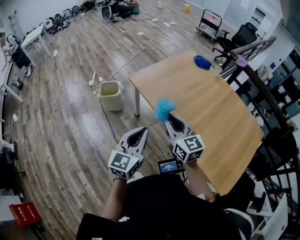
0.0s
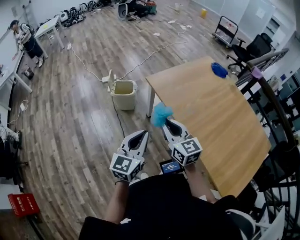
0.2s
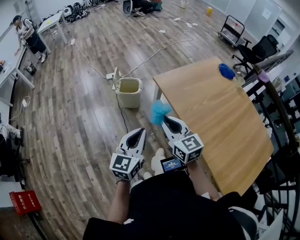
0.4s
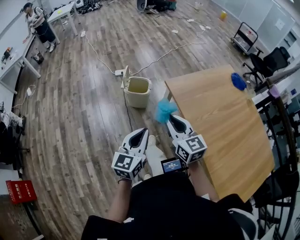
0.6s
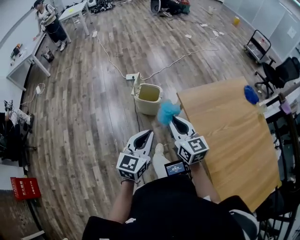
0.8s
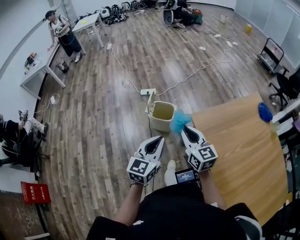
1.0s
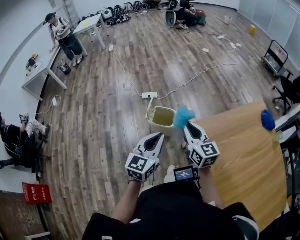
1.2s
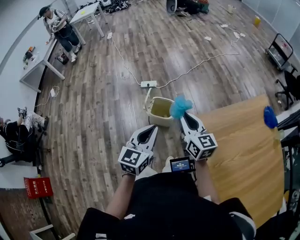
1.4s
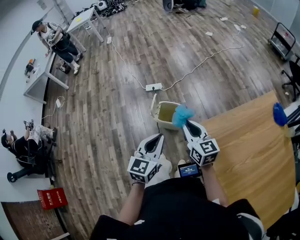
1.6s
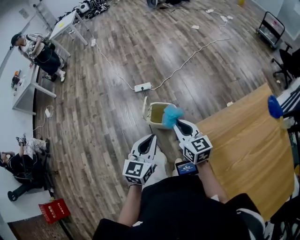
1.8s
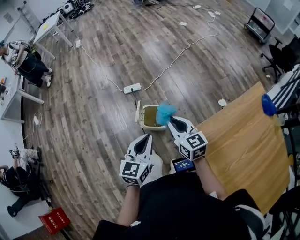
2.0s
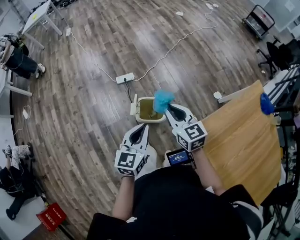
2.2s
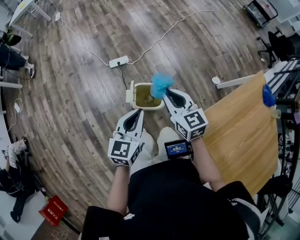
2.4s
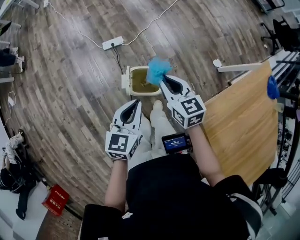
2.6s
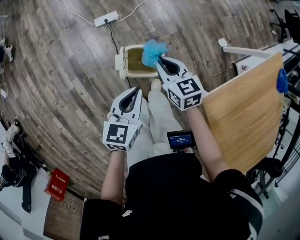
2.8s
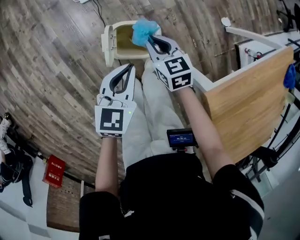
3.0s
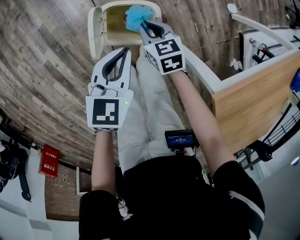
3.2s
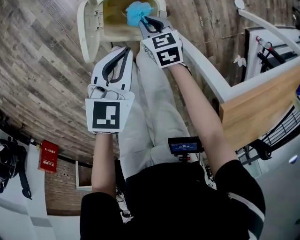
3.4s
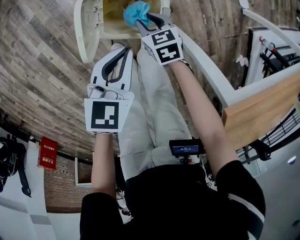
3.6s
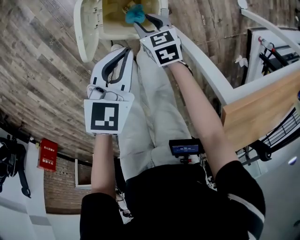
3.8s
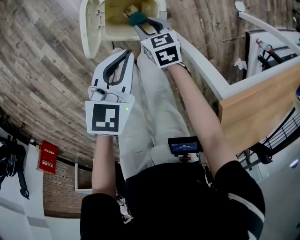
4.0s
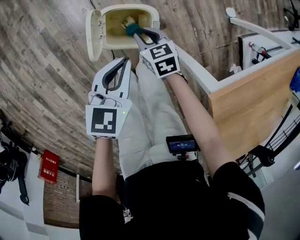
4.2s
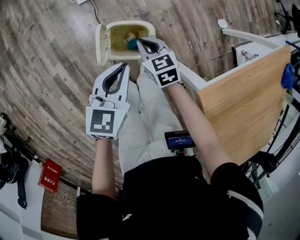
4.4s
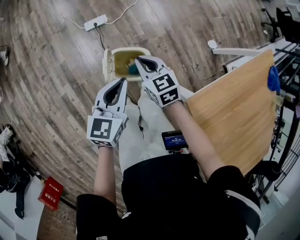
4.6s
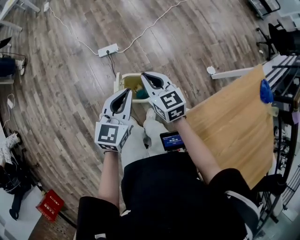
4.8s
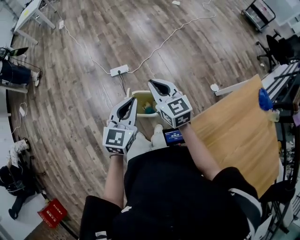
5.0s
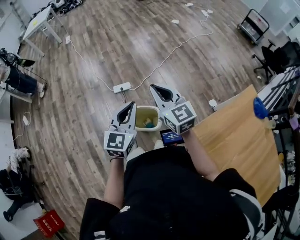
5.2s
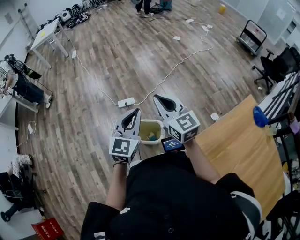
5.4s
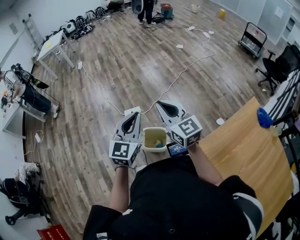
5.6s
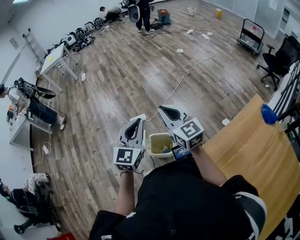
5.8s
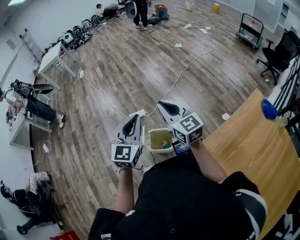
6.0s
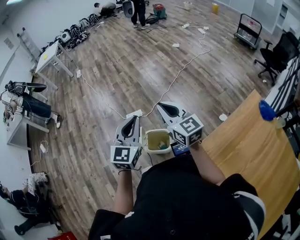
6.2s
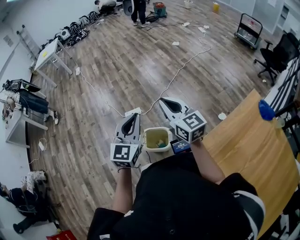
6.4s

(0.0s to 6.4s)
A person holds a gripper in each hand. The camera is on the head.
0.0s - 1.6s: Both grippers are carried forward and to the left, approximately 50 cm. The right gripper turns by roughly 20 degrees. The left gripper rotates about 30 degrees.
1.6s - 3.2s: Both grippers move downward and forward, some 50 cm. The left gripper changes its angle by some 30 degrees. Meanwhile the right gripper angles its fingers downward, by roughly 40 degrees.
3.2s - 4.8s: Both grippers travel together upward, approximately 30 cm. The left gripper turns by approximately 20 degrees. Meanwhile the right gripper swivels about 30 degrees, and opens, then closes again.
4.8s - 6.4s: Both grippers travel together upward, some 20 cm. The right gripper swivels about 20 degrees, while the left gripper turns by some 20 degrees.

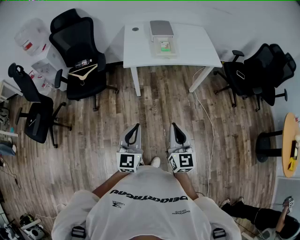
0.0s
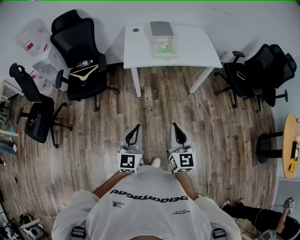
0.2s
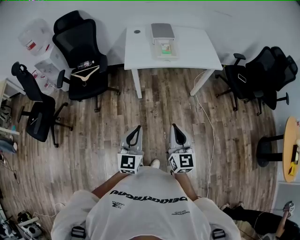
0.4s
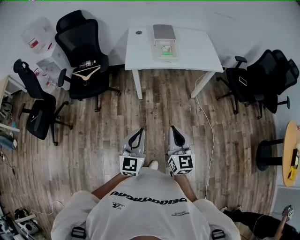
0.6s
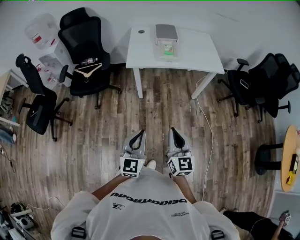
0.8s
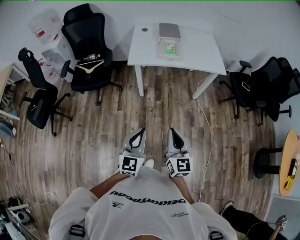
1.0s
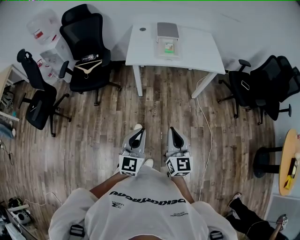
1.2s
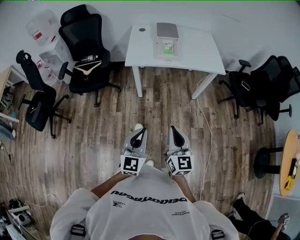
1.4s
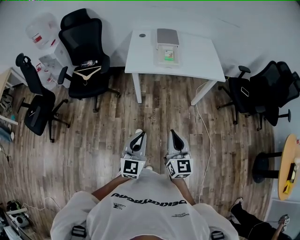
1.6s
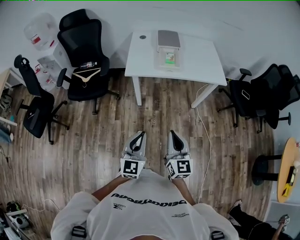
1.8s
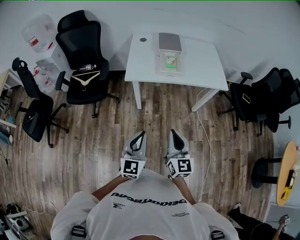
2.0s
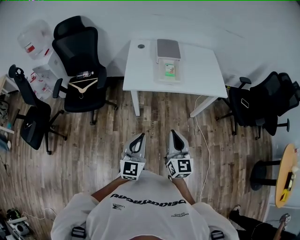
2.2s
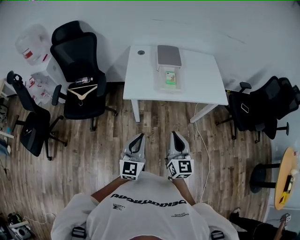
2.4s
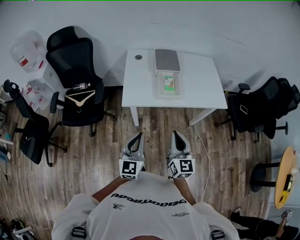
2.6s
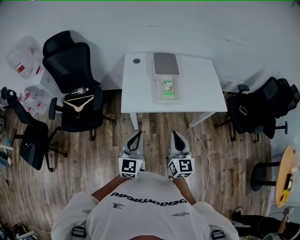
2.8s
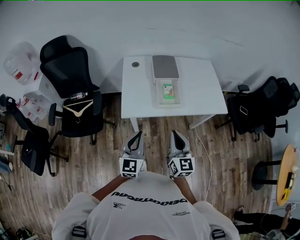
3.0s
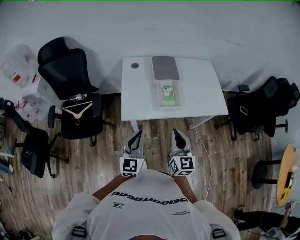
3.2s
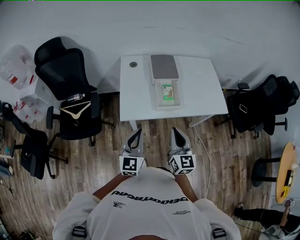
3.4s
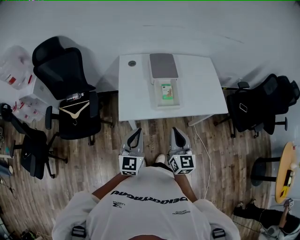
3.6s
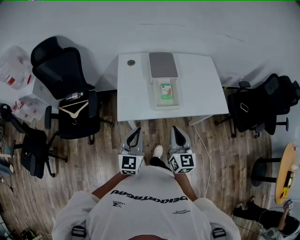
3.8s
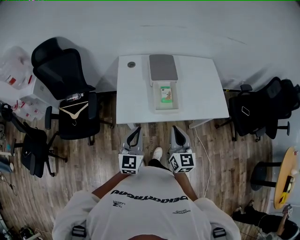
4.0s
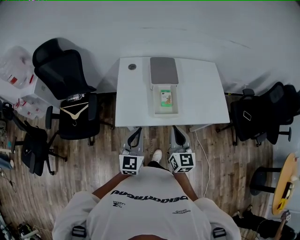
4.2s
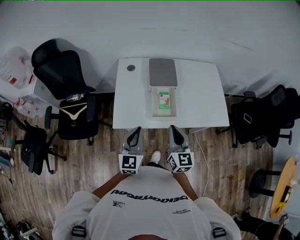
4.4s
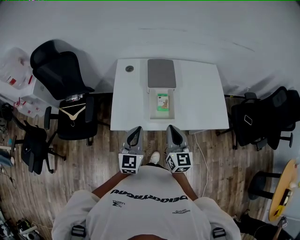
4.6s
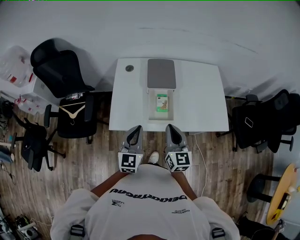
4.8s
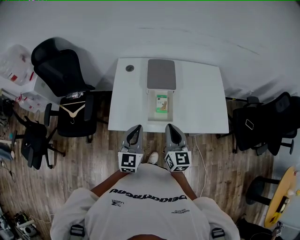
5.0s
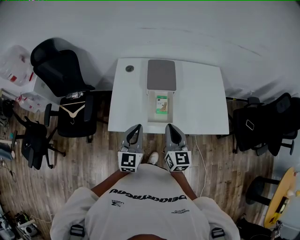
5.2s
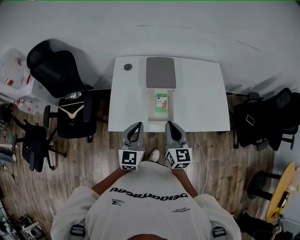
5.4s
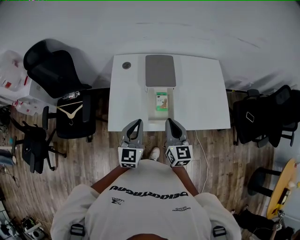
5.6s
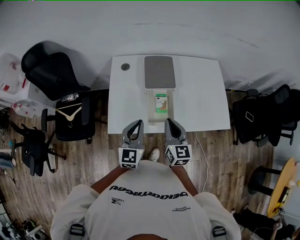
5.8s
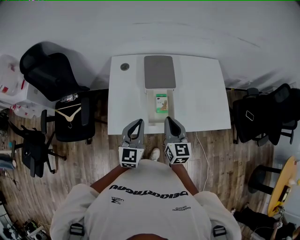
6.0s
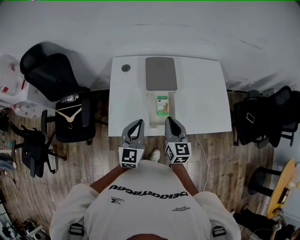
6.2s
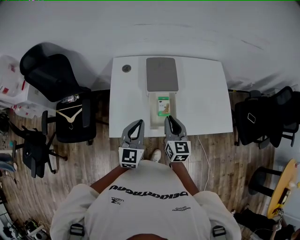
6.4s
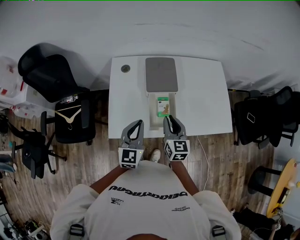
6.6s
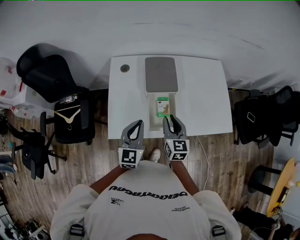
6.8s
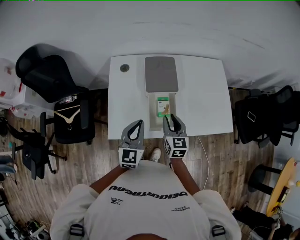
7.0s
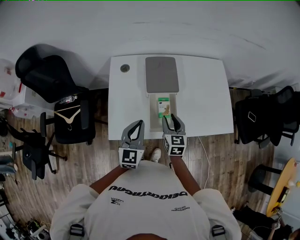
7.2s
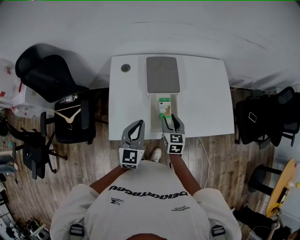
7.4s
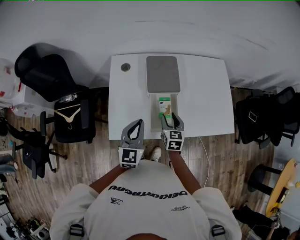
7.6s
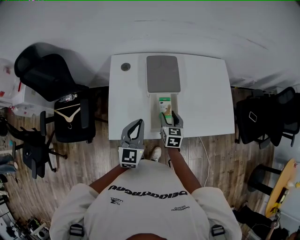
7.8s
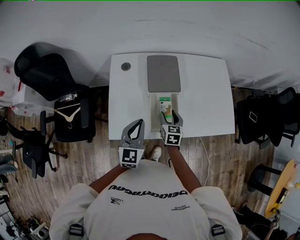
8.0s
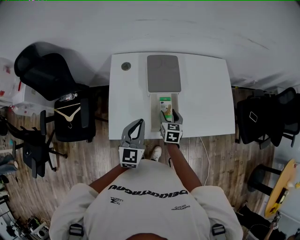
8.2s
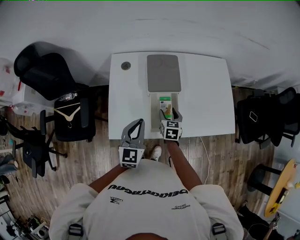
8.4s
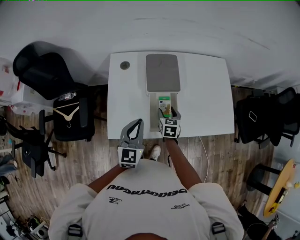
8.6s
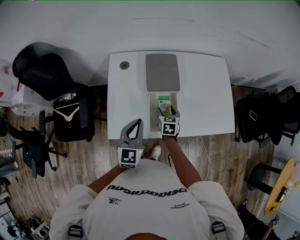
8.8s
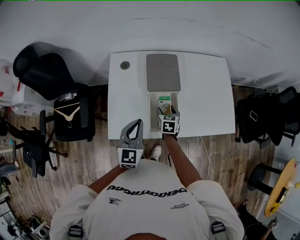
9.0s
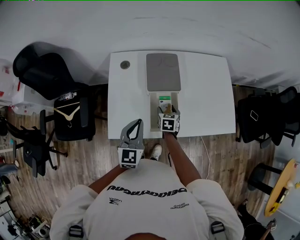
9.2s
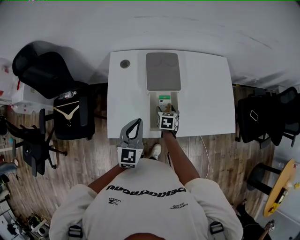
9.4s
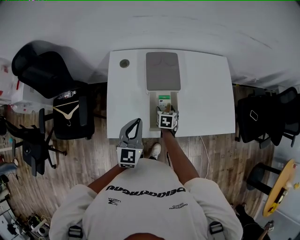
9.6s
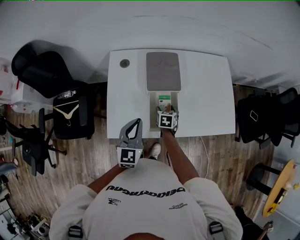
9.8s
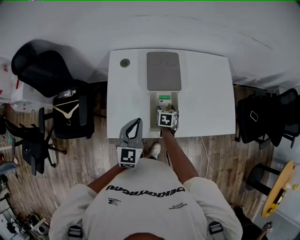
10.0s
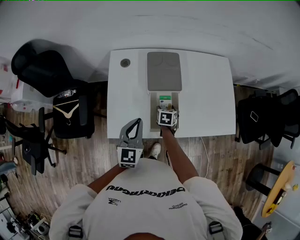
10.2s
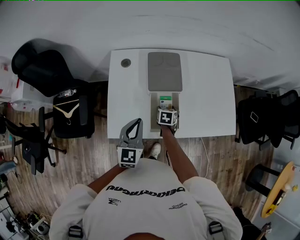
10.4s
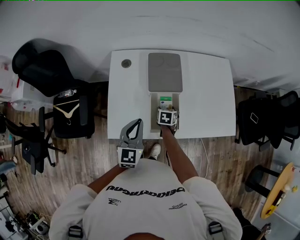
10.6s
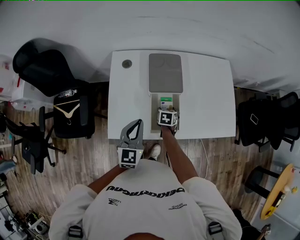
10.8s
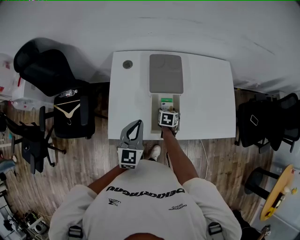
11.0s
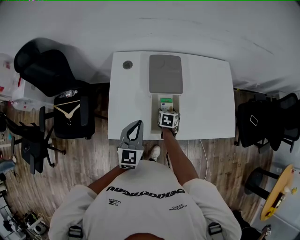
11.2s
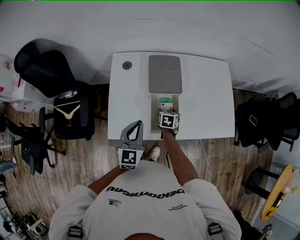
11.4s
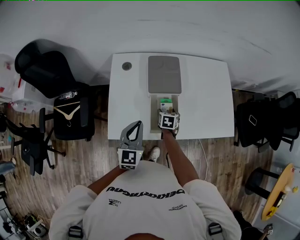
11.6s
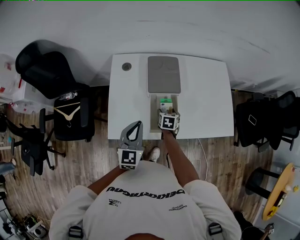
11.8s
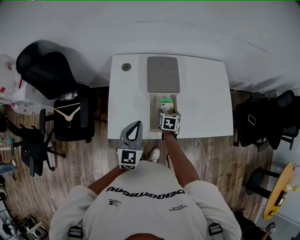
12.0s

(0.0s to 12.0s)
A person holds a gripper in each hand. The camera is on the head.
0.0s - 1.6s: The left gripper goes roughly 10 cm to the right. The right gripper moves to the right, approximately 5 cm.
1.6s - 3.0s: The two grippers go some 35 cm forward.
3.0s - 4.4s: The grippers both shift forward by roughly 15 cm.
4.4s - 6.0s: The grippers both shift forward by some 10 cm.
6.0s - 7.6s: The left gripper changes place by roughly 5 cm. The right gripper heads downward and forward, covering about 15 cm, rotates about 20 degrees, and opens.
7.6s - 9.0s: The right gripper moves downward, some 10 cm.
9.0s - 10.4s: The right gripper shifts approximately 5 cm downward.
10.4s - 12.0s: The grippers make only small movements.

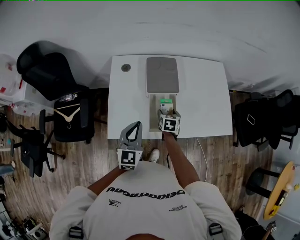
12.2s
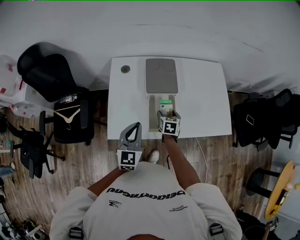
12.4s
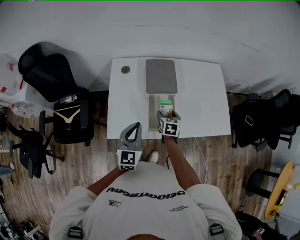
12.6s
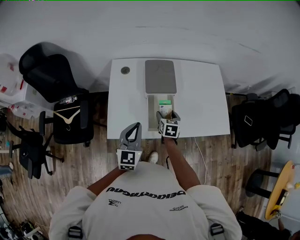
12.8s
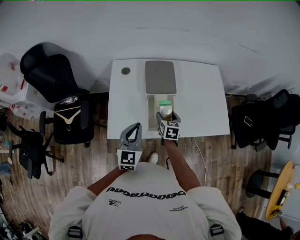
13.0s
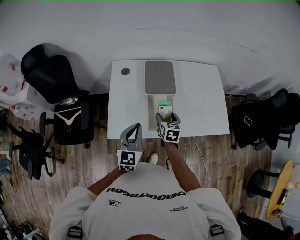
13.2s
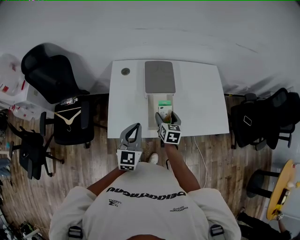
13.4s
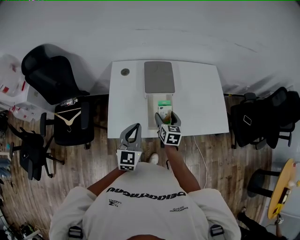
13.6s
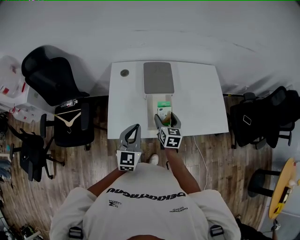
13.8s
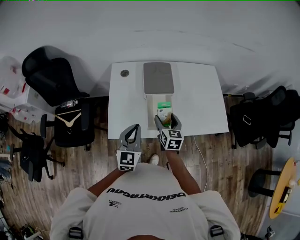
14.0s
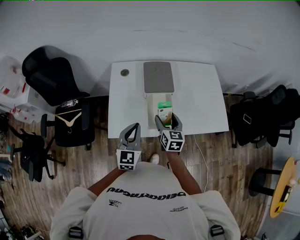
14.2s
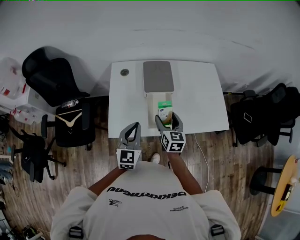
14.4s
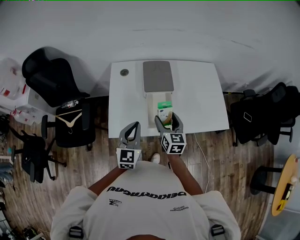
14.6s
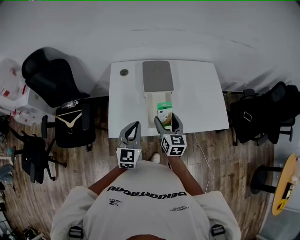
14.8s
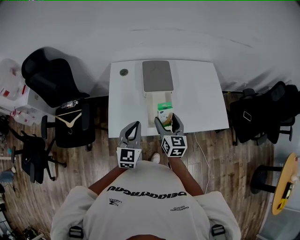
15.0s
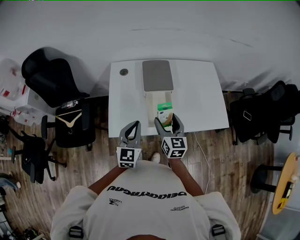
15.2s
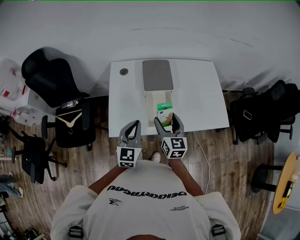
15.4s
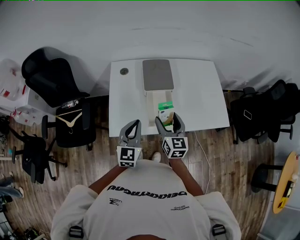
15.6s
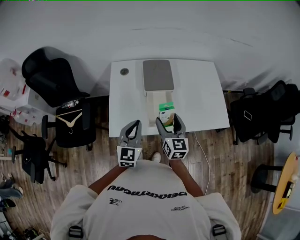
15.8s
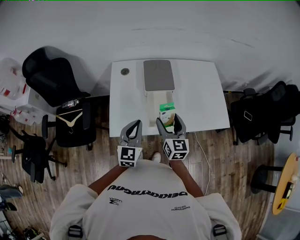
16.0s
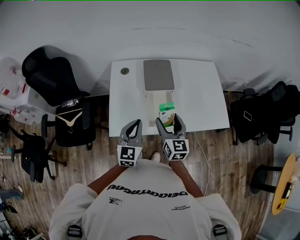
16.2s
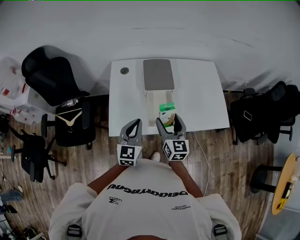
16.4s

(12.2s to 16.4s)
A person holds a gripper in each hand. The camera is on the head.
12.2s - 13.6s: The right gripper heads upward and backward, covering roughly 15 cm.
13.6s - 15.0s: The right gripper moves upward and backward, approximately 10 cm.
15.0s - 16.4s: The grippers make only small movements.

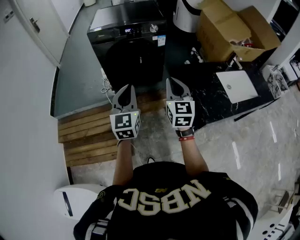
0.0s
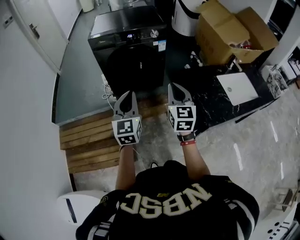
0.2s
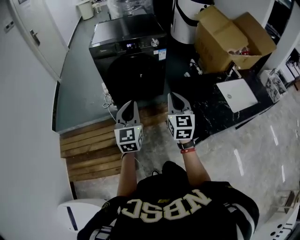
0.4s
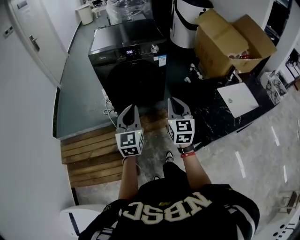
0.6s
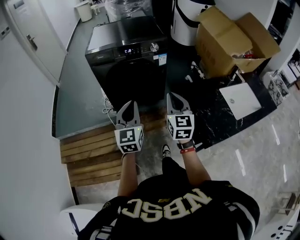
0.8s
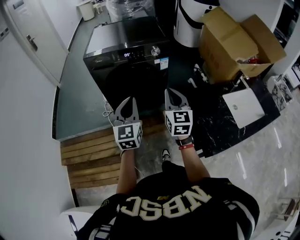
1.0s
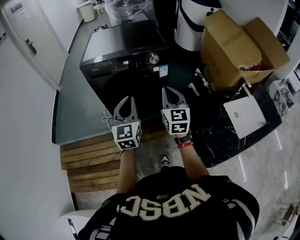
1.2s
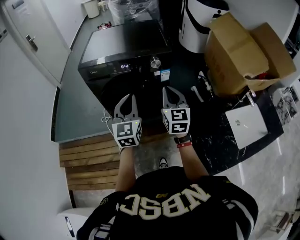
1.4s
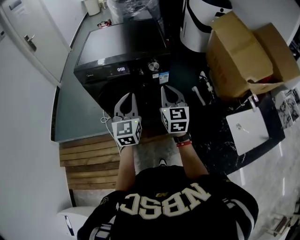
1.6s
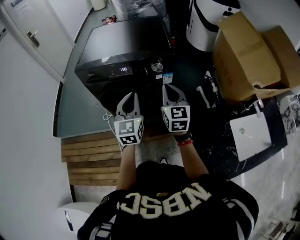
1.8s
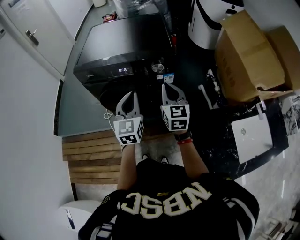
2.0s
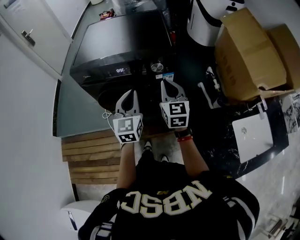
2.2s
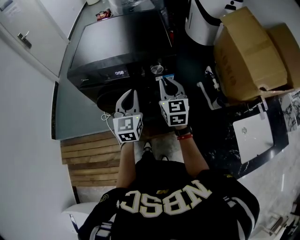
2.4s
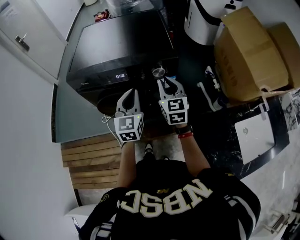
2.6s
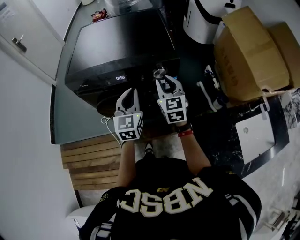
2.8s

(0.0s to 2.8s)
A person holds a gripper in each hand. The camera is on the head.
0.0s - 1.4s: The two grippers go roughly 25 cm forward.
1.4s - 2.8s: Both grippers travel together forward, about 20 cm. The right gripper opens.
